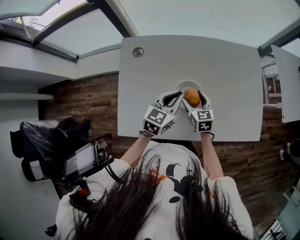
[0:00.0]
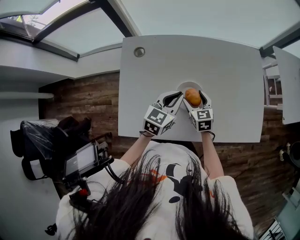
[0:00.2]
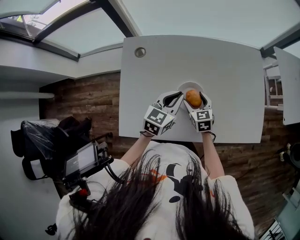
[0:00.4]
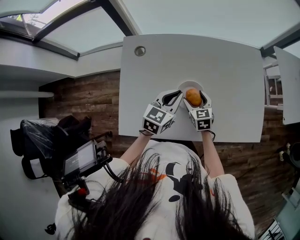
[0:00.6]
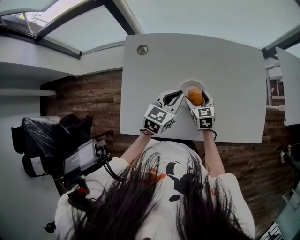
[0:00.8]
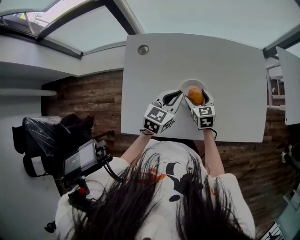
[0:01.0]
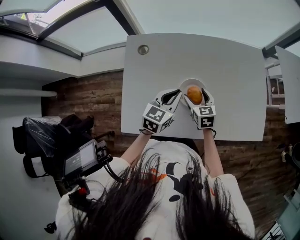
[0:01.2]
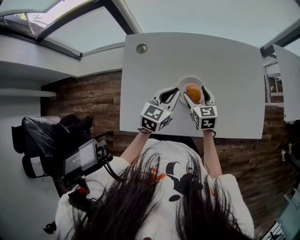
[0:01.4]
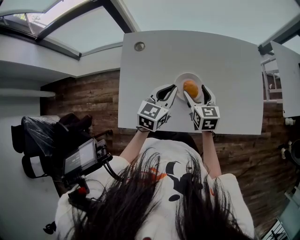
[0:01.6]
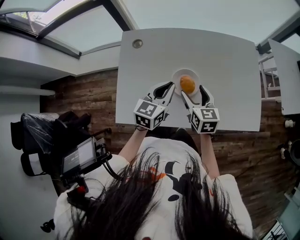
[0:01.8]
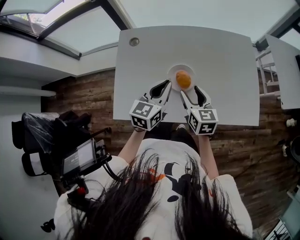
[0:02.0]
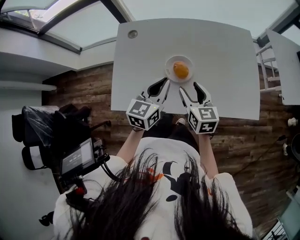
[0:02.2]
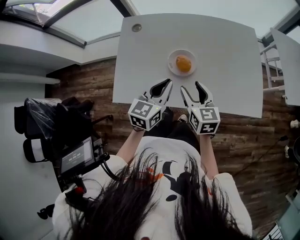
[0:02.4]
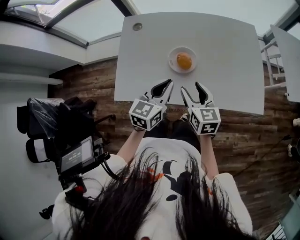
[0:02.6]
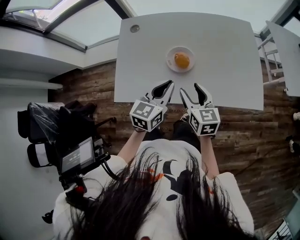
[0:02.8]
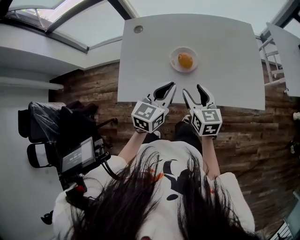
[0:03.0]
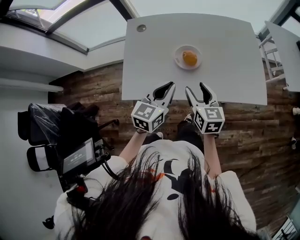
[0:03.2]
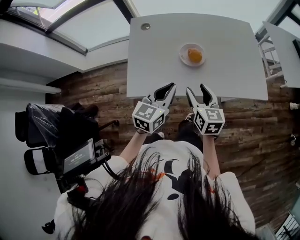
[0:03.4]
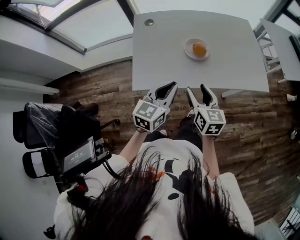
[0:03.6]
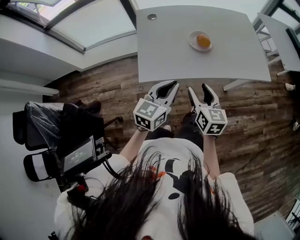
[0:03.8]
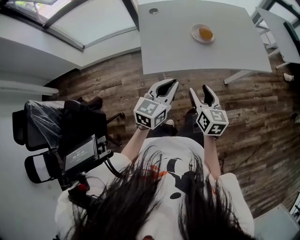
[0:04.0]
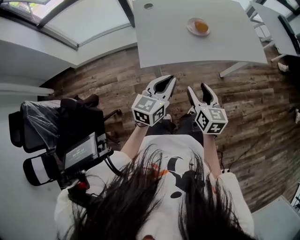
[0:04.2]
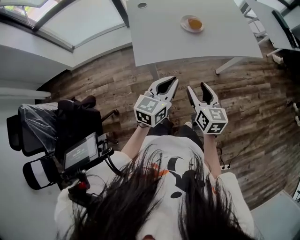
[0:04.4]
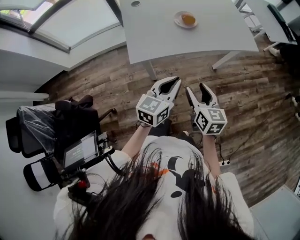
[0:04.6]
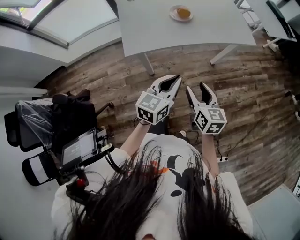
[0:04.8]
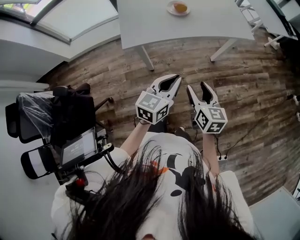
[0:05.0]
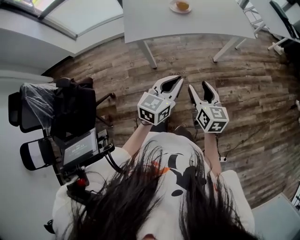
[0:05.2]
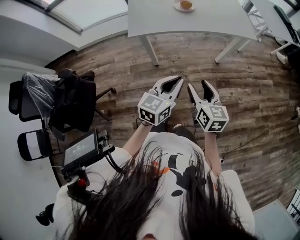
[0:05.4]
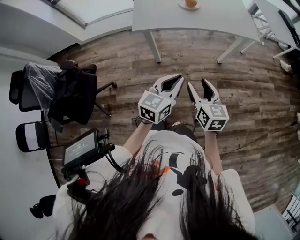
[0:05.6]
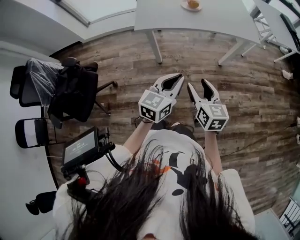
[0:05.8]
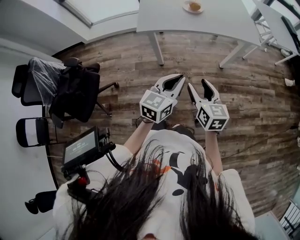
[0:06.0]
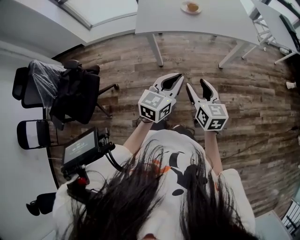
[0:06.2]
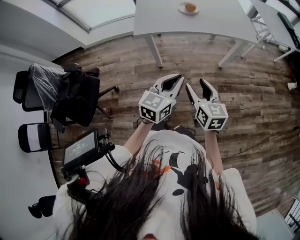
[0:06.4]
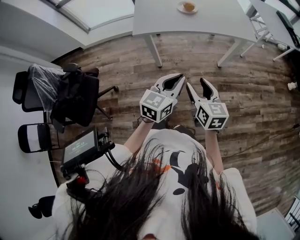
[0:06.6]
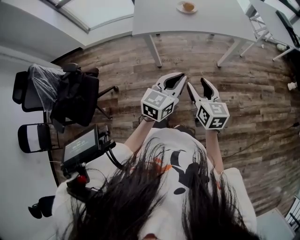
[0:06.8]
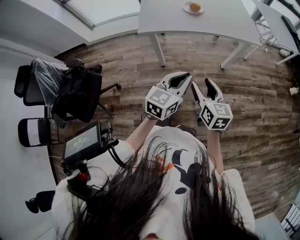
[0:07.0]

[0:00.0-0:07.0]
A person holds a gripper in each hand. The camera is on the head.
0:00.0 to 0:01.4: There are only small adjustments of the grippers.
0:01.4 to 0:02.8: The left gripper goes roughly 15 cm backward. The right gripper shifts some 20 cm backward and upward.
0:02.8 to 0:04.2: Both grippers move backward and to the left, roughly 30 cm.
0:04.2 to 0:05.6: The grippers both shift backward and to the right by about 25 cm.
0:05.6 to 0:07.0: The grippers stay close to where they were, moving slightly.

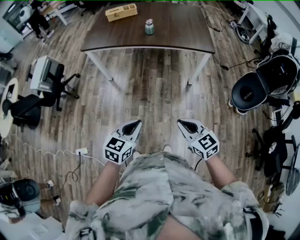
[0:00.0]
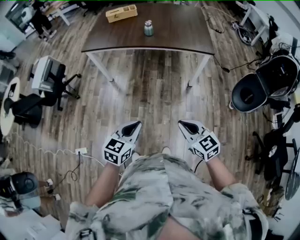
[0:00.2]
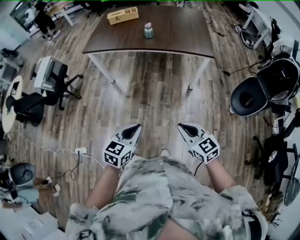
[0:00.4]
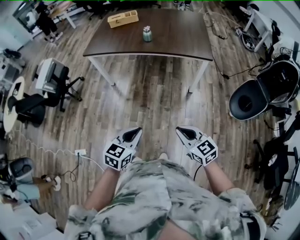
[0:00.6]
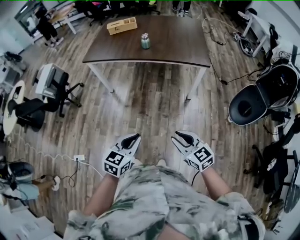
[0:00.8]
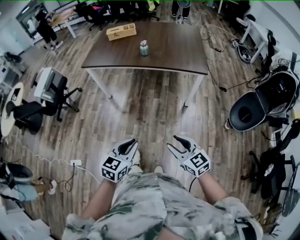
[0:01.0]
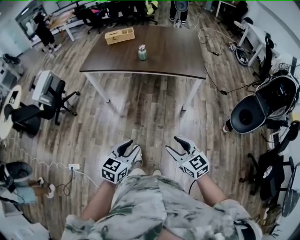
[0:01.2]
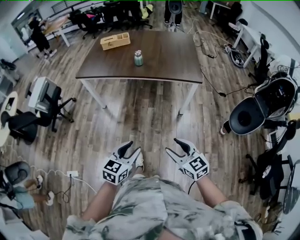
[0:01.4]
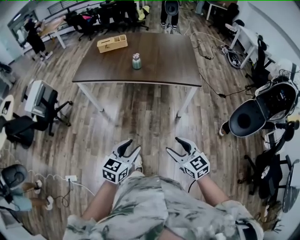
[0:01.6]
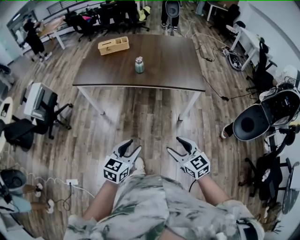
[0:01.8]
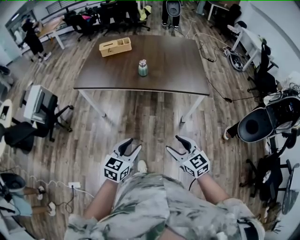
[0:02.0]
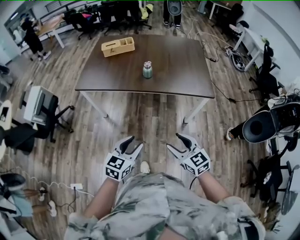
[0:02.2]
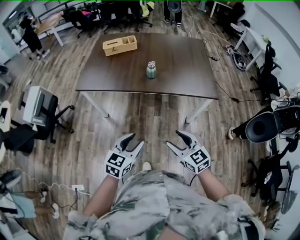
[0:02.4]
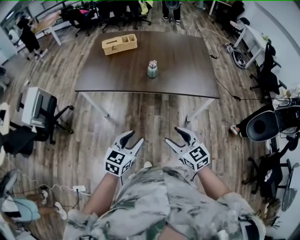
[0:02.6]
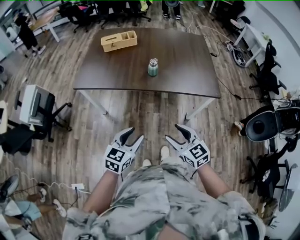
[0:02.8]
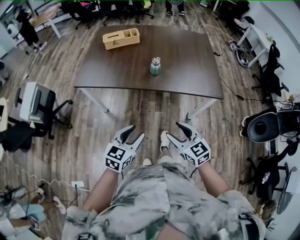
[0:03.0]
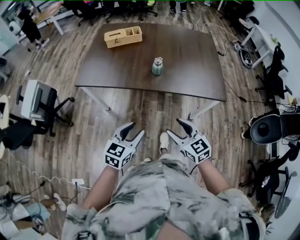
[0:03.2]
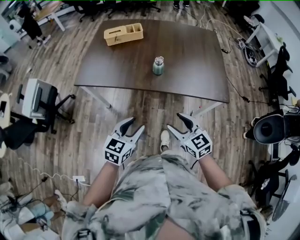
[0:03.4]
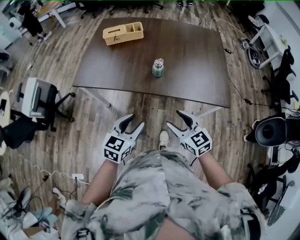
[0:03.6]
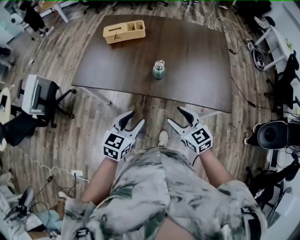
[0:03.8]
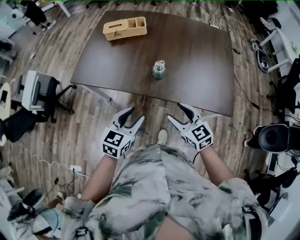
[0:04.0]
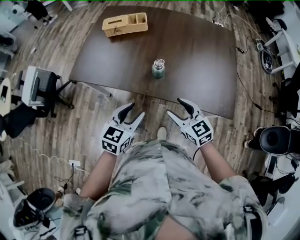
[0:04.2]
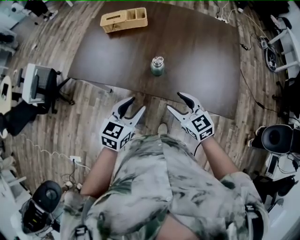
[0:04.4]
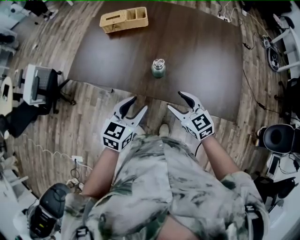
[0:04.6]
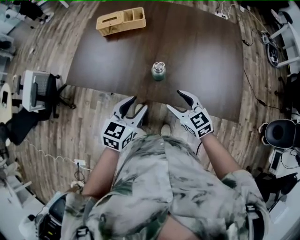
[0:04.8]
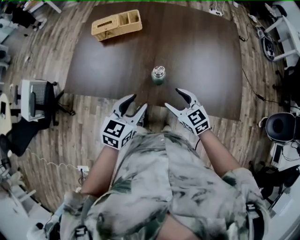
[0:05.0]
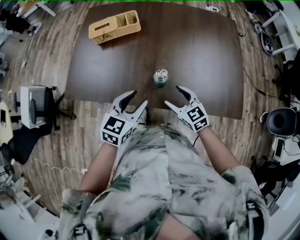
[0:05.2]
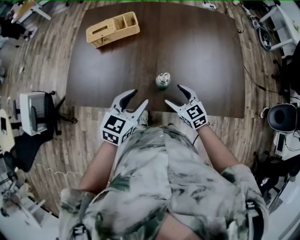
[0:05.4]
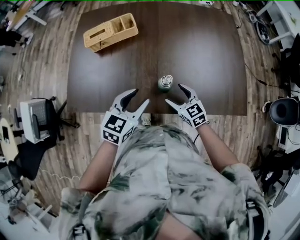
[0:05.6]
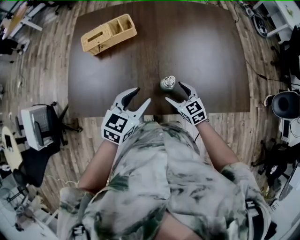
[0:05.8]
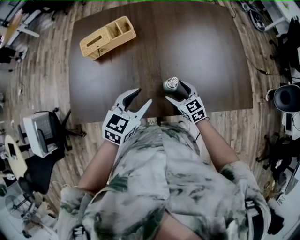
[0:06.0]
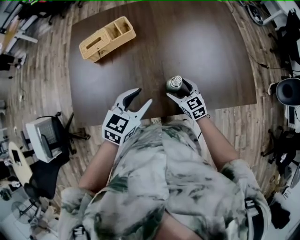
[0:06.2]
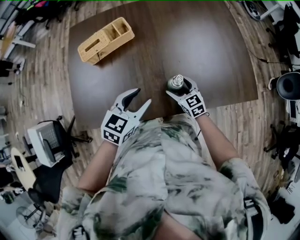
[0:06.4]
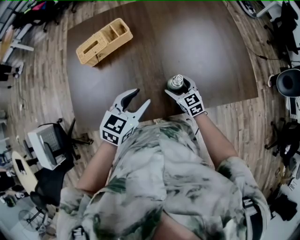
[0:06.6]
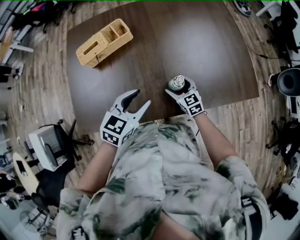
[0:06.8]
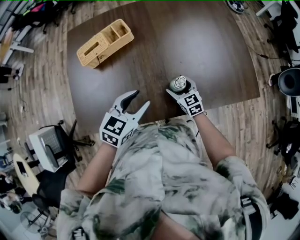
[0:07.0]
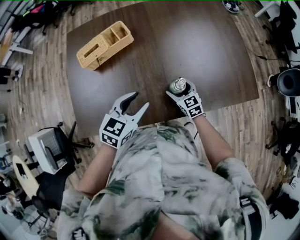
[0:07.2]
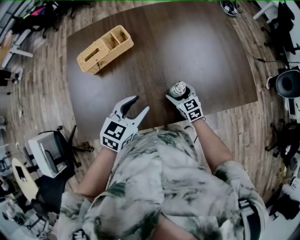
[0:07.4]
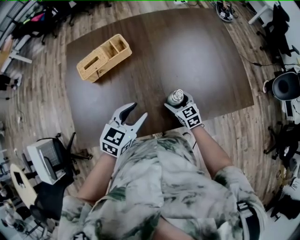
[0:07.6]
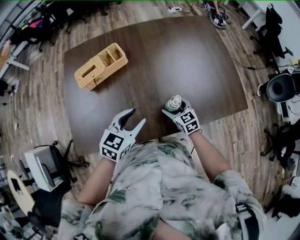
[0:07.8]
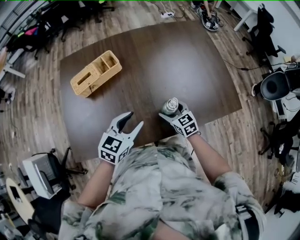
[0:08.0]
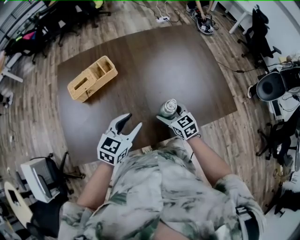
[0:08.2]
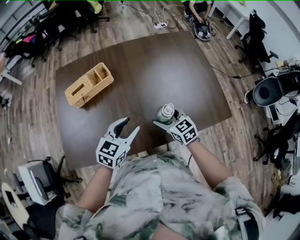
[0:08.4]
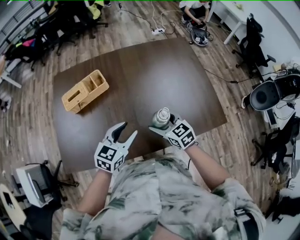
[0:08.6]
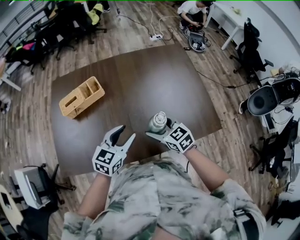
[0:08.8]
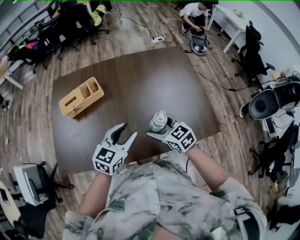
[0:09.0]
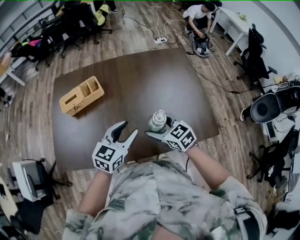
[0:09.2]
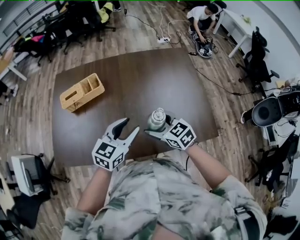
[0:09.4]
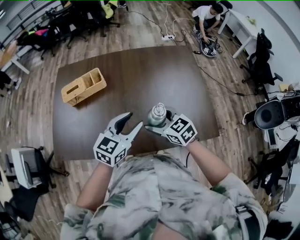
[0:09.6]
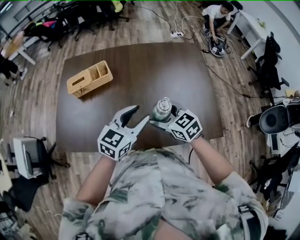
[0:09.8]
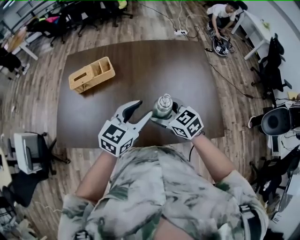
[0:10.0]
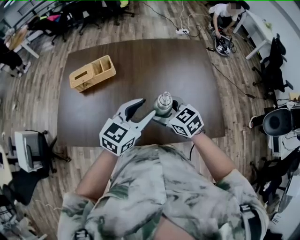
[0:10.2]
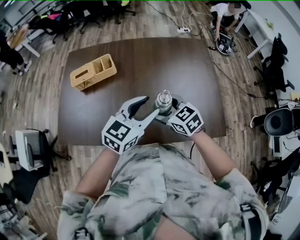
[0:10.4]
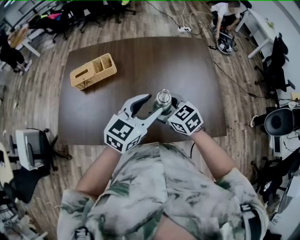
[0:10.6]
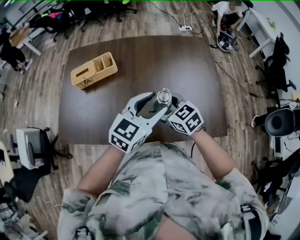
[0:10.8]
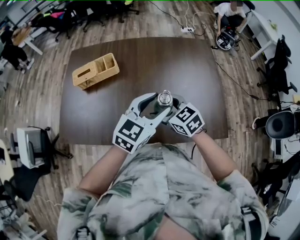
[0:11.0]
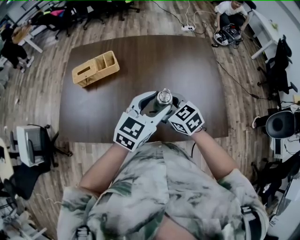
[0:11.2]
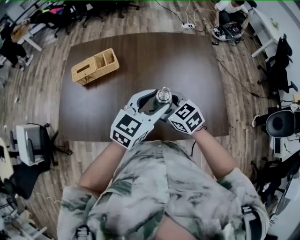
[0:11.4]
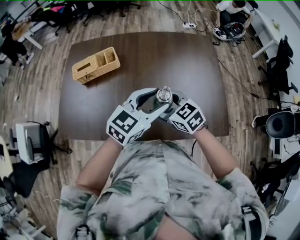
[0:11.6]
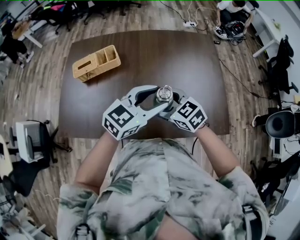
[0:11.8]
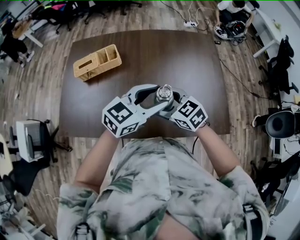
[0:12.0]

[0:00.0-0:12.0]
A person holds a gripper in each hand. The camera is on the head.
0:00.0 to 0:01.6: Both grippers travel together to the right and forward, approximately 10 cm. The left gripper opens. Meanwhile the right gripper opens up.
0:01.6 to 0:03.0: Both grippers move forward and to the left, roughly 30 cm.
0:03.0 to 0:04.4: The left gripper goes about 25 cm forward and to the right; the right gripper heads forward, covering roughly 25 cm.
0:04.4 to 0:06.0: The right gripper moves forward, downward and to the left, roughly 25 cm, and rotates approximately 20 degrees. The left gripper goes about 20 cm forward, and changes its angle by roughly 20 degrees.
0:06.0 to 0:07.6: The left gripper shifts by approximately 5 cm. The right gripper ends up approximately 5 cm from where it was.
0:07.6 to 0:09.0: The left gripper shifts roughly 15 cm to the right and upward, while the right gripper goes approximately 20 cm upward and to the right.
0:09.0 to 0:10.4: The left gripper is displaced to the right and upward by approximately 10 cm.
0:10.4 to 0:12.0: The grippers stay close to where they were, moving slightly.

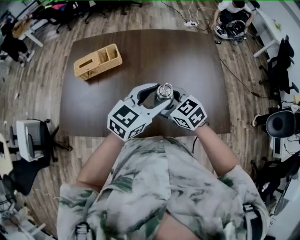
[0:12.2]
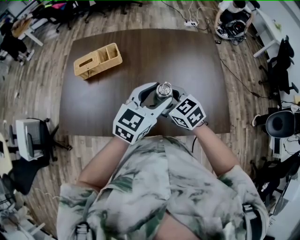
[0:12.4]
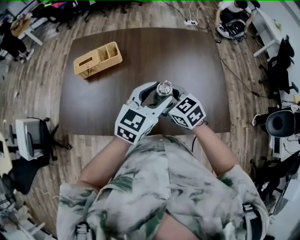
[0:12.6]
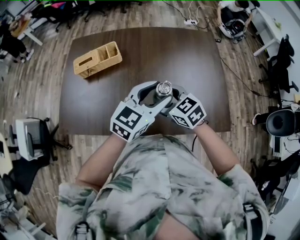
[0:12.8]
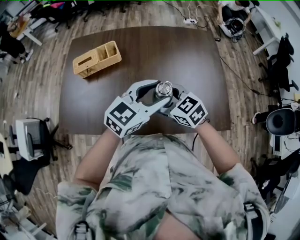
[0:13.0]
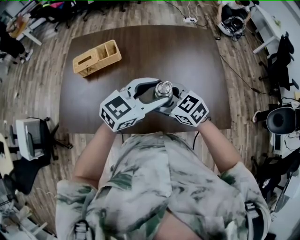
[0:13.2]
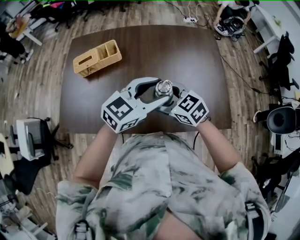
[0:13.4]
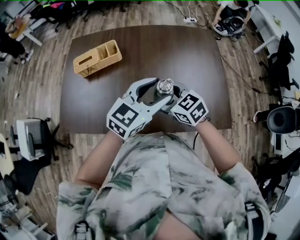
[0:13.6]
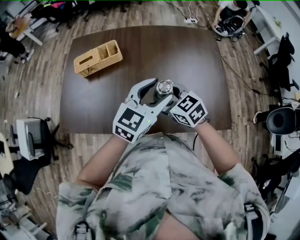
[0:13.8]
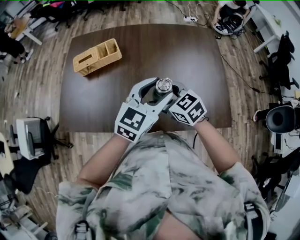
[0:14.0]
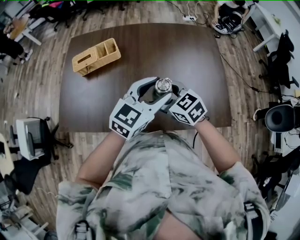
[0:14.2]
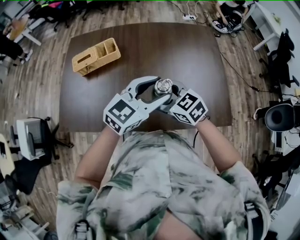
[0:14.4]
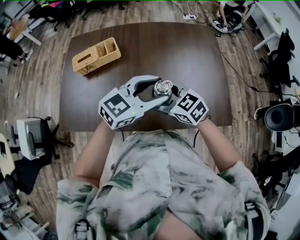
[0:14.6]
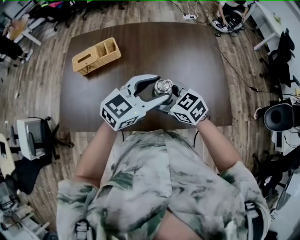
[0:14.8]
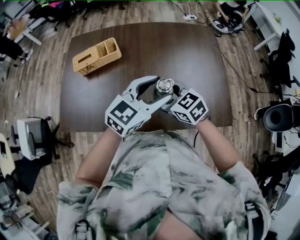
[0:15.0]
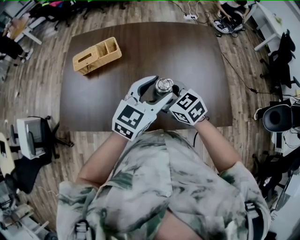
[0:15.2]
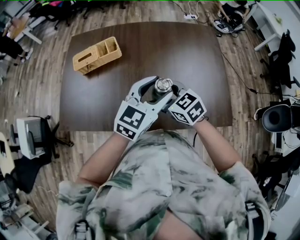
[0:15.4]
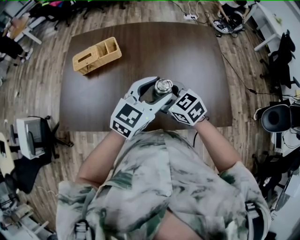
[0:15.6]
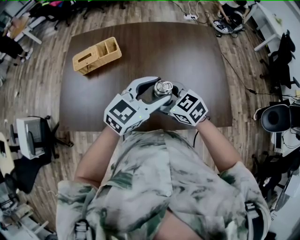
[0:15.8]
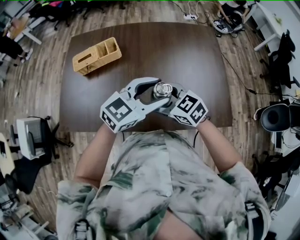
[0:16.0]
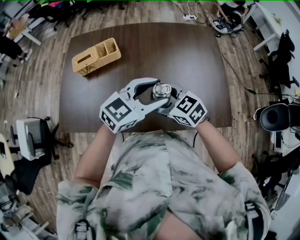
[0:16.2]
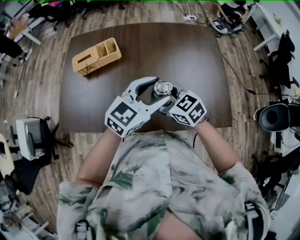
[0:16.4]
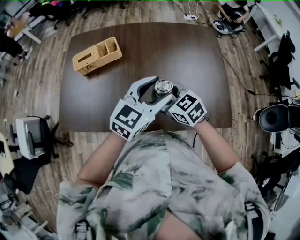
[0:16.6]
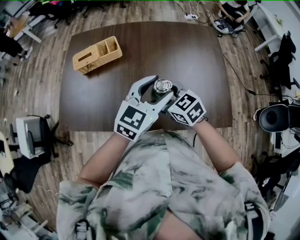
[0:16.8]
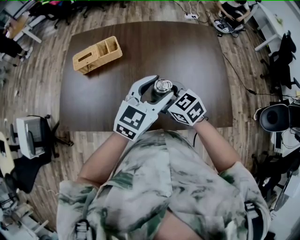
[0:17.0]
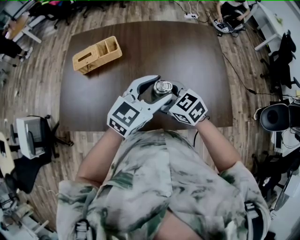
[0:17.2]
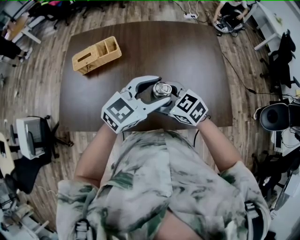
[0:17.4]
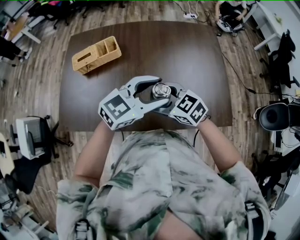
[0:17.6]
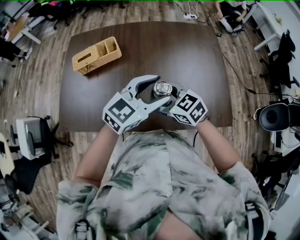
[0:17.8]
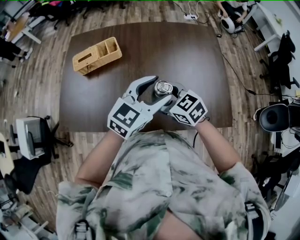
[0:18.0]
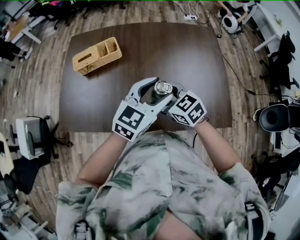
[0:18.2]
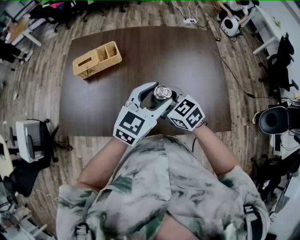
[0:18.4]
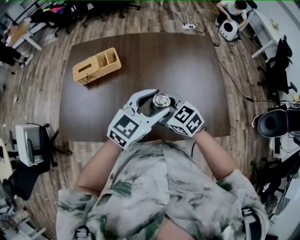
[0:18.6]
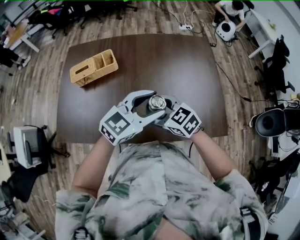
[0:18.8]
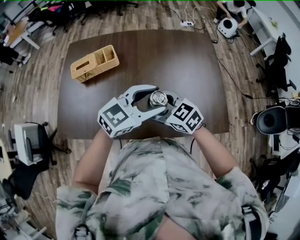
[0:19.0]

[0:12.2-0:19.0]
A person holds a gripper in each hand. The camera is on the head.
0:12.2 to 0:17.6: The grippers stay close to where they were, moving slightly.
